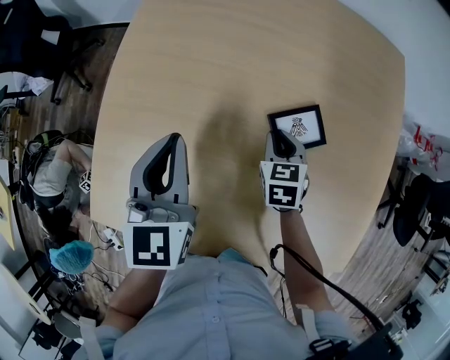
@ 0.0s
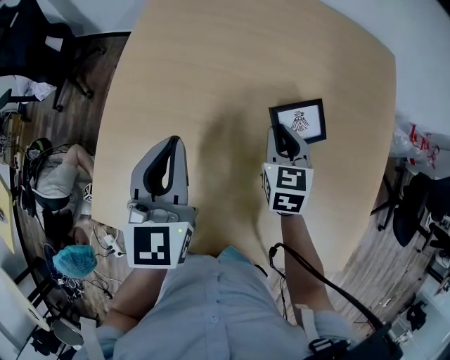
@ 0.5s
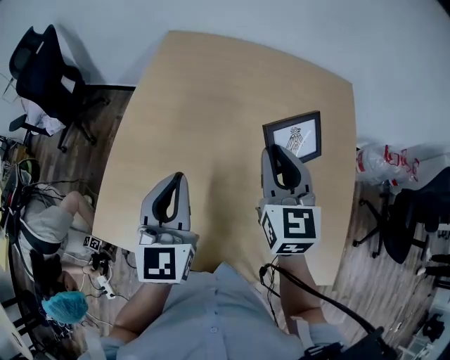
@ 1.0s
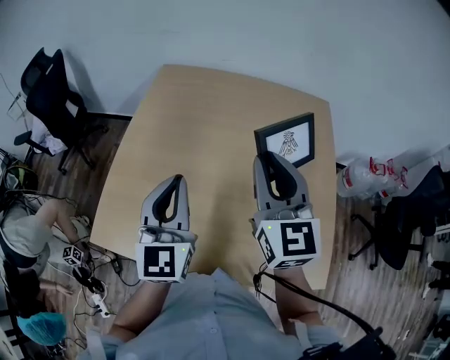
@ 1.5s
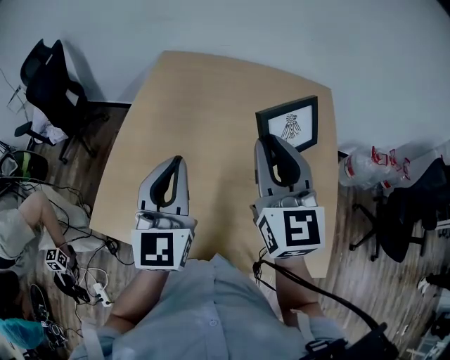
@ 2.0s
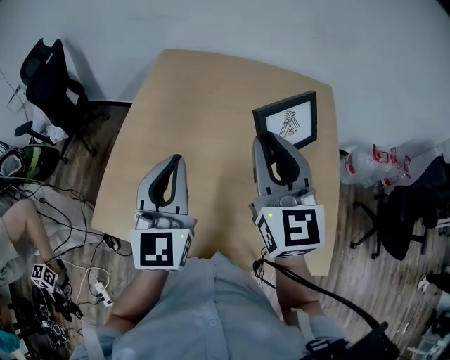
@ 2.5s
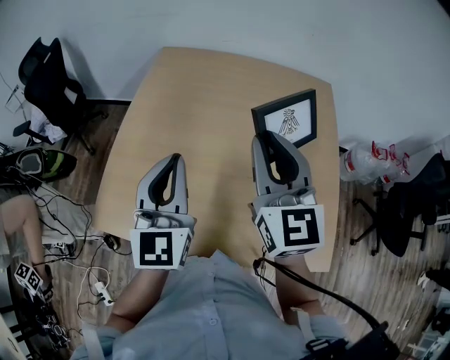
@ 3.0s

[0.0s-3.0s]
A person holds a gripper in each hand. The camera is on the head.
0.0s to 1.5s: The right gripper heads upward, covering about 35 cm, and points its fingers about 50 degrees further upward, while the left gripper goes roughly 15 cm upward, backward and to the right, and turns by some 20 degrees.
1.5s to 3.0s: The grippers move only a little.

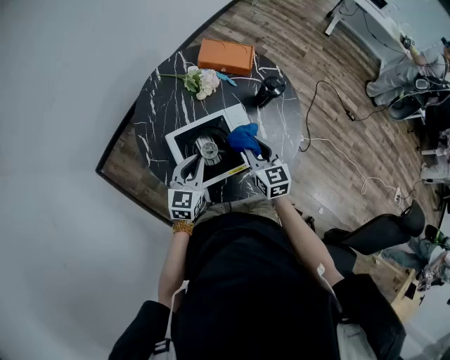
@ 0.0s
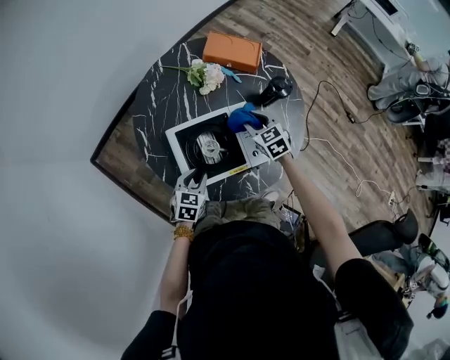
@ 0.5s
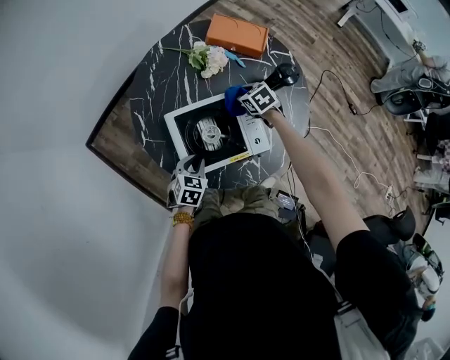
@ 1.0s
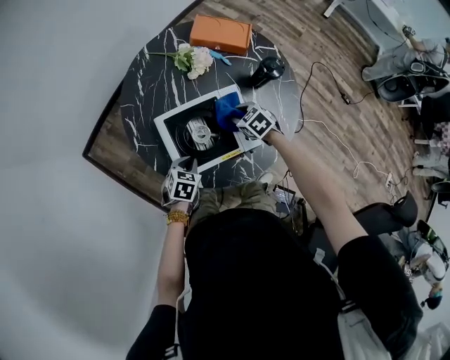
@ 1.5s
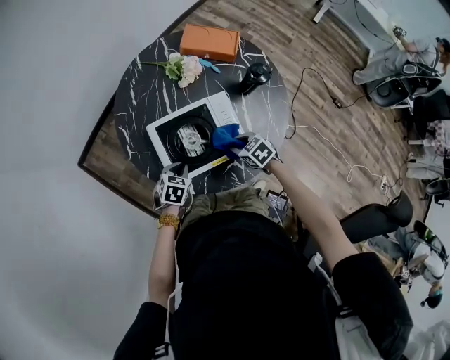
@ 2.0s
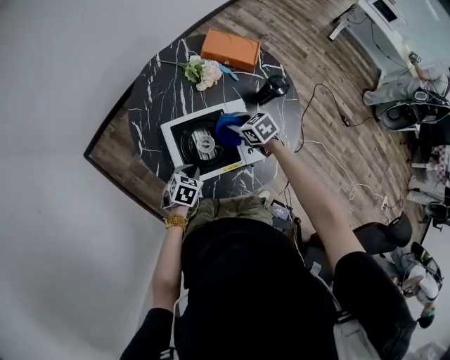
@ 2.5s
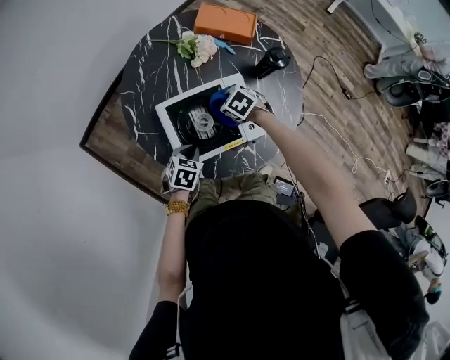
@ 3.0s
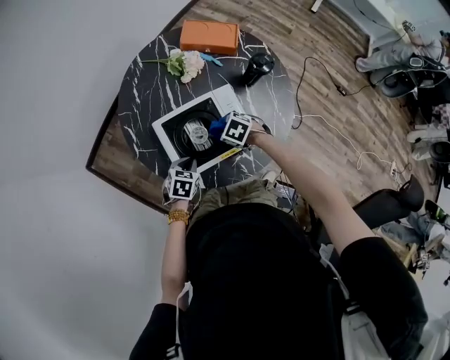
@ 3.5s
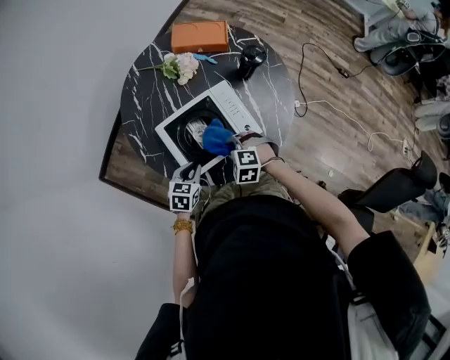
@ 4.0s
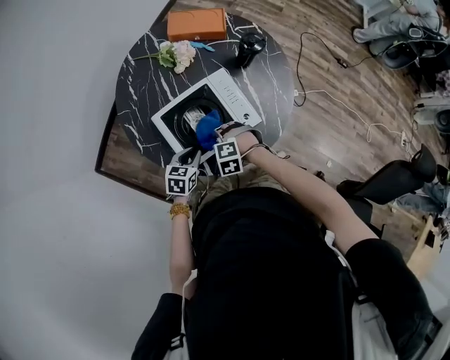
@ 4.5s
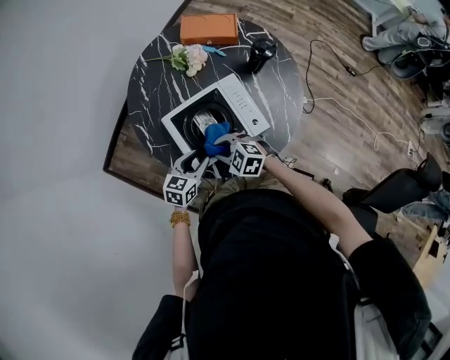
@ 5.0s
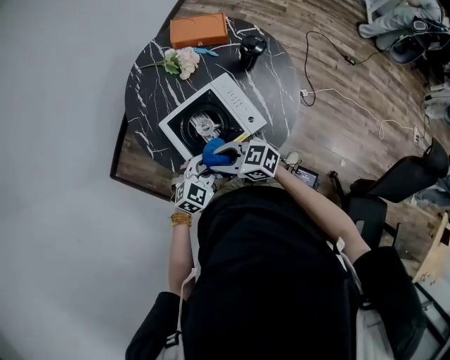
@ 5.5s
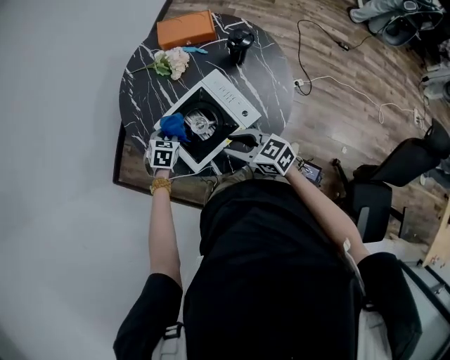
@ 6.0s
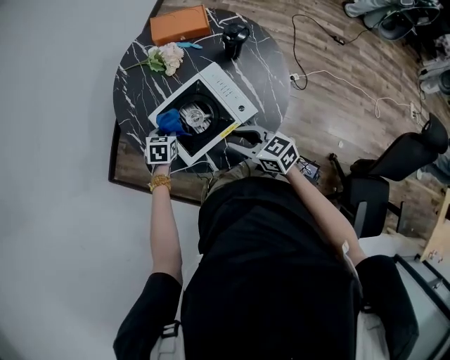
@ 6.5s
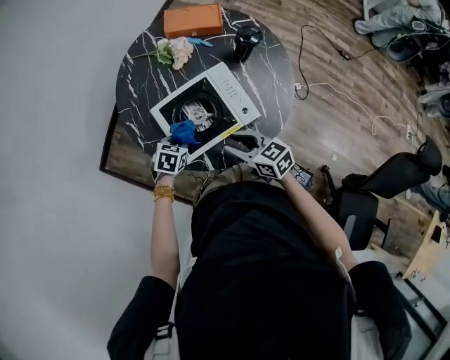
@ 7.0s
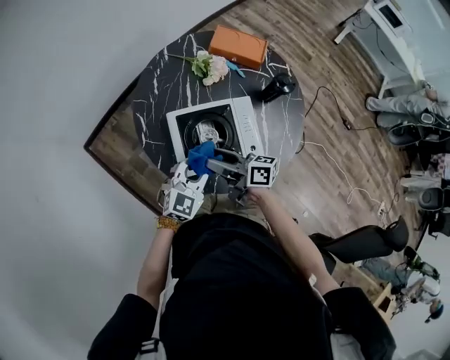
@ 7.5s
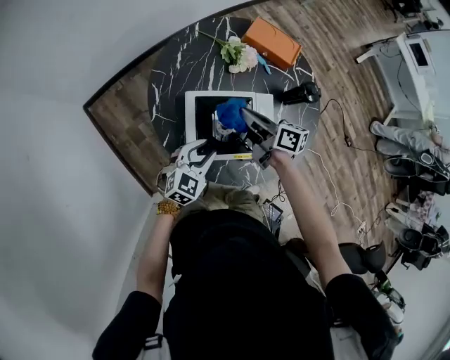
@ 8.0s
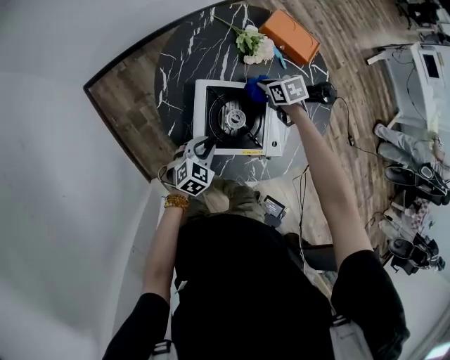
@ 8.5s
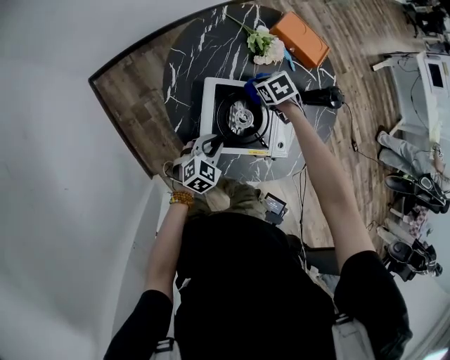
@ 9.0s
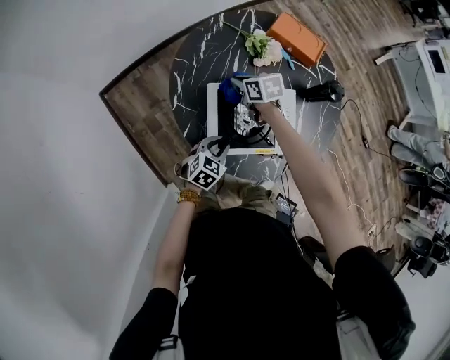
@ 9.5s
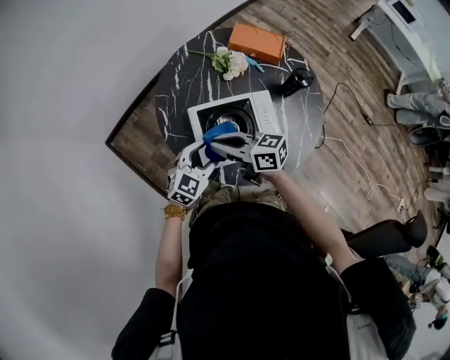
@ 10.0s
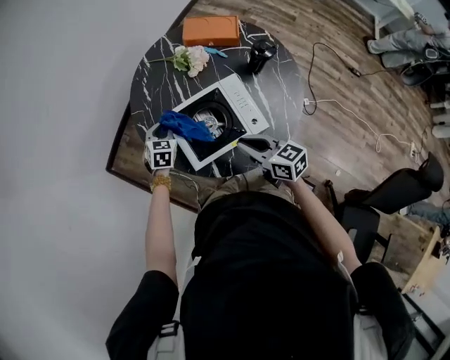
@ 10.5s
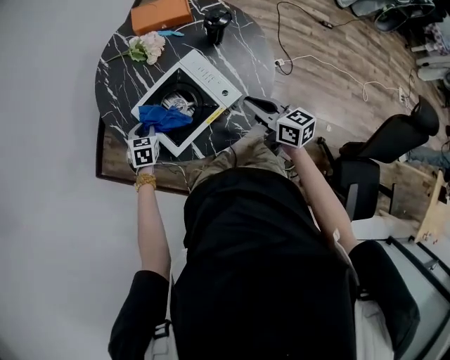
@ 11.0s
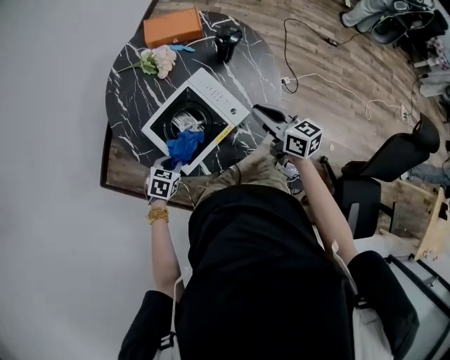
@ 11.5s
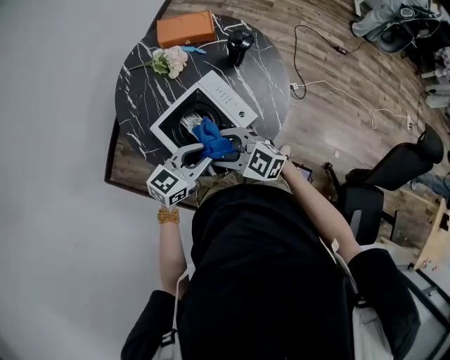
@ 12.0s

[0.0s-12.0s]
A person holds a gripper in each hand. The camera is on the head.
0.0s to 2.0s: The grippers both shift downward by about 15 cm. The left gripper angles its fingers downward, by about 40 degrees, and opens, then closes again. The right gripper travels forward and back again, some 15 cm each way, and points its fingers approximately 30 degrees further downward.
2.0s to 4.0s: The right gripper is displaced to the left by about 10 cm, moves some 10 cm forward and comes back, and rolls counterclockwise, seen from behind, by about 40 degrees.
4.0s to 6.0s: The right gripper travels upward by about 10 cm, and angles its fingers upward, by roughly 40 degrees. Meanwhile the left gripper goes upward and returns, approximately 5 cm each way, and changes its angle by some 20 degrees.
6.0s to 8.0s: The left gripper shifts about 15 cm backward and upward, and tips its fingers upward by approximately 30 degrees. The right gripper travels forward by roughly 15 cm, changes its angle by about 30 degrees, and closes.
8.0s to 10.0s: The right gripper is displaced to the left and backward by roughly 15 cm, goes downward and returns, approximately 15 cm each way, and turns by approximately 20 degrees, while the left gripper moves roughly 10 cm downward and comes back.
10.0s to 12.0s: The right gripper turns by roughly 50 degrees, and opens its fingers; the left gripper travels downward and back again, some 15 cm each way, changes its angle by approximately 40 degrees, and closes up.

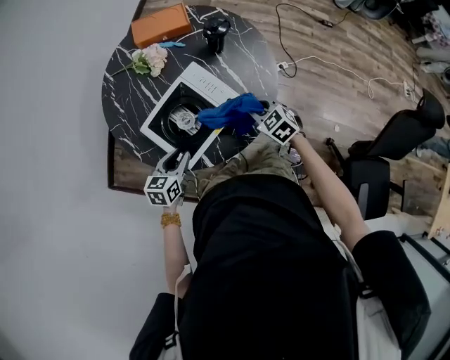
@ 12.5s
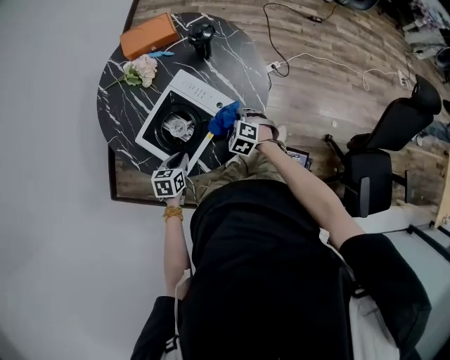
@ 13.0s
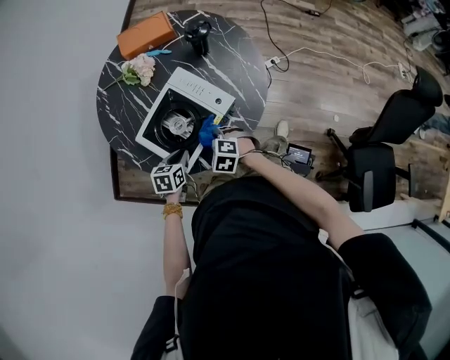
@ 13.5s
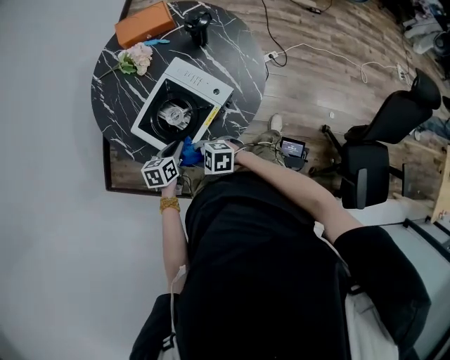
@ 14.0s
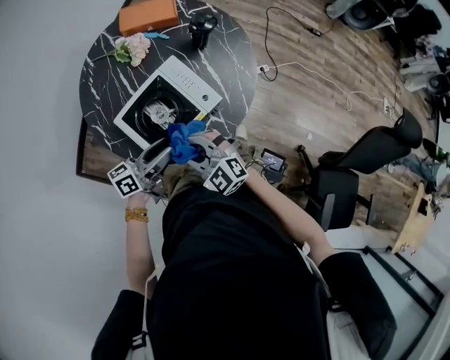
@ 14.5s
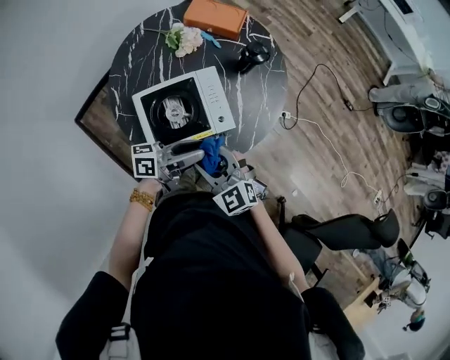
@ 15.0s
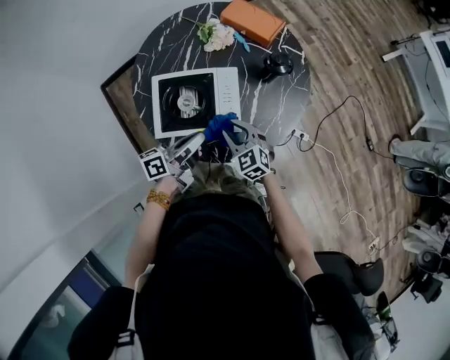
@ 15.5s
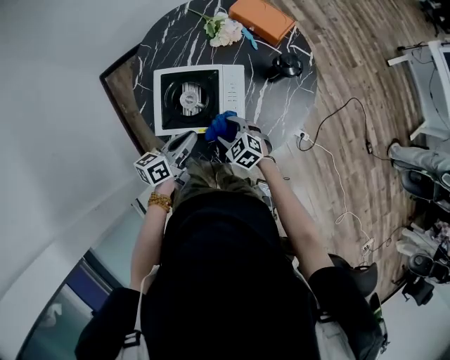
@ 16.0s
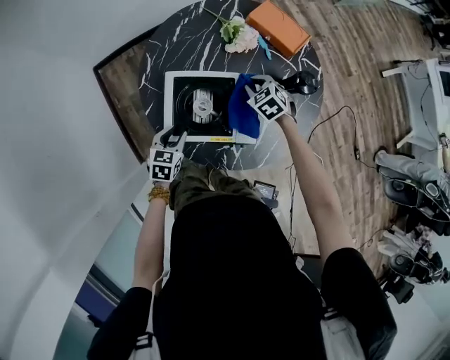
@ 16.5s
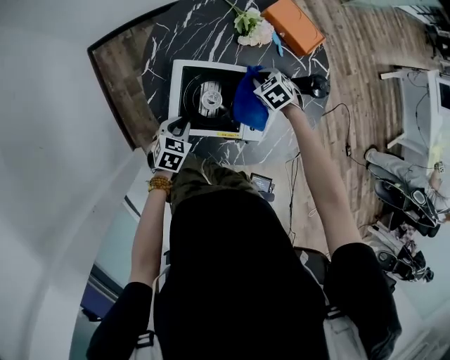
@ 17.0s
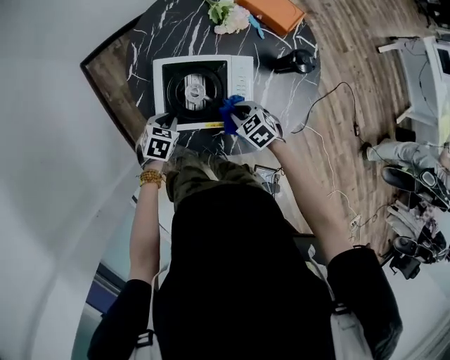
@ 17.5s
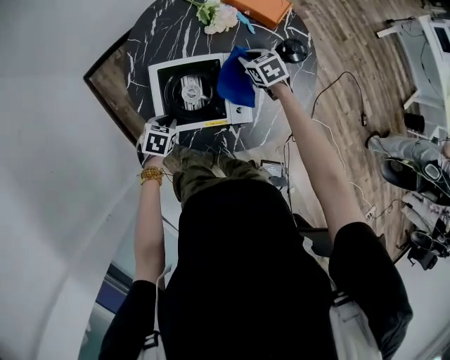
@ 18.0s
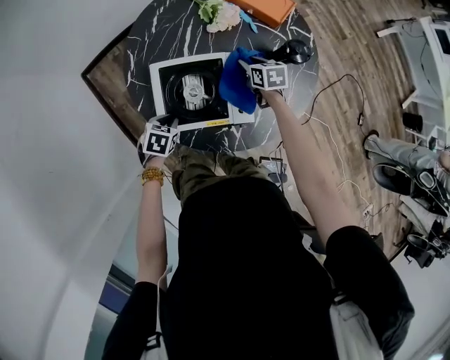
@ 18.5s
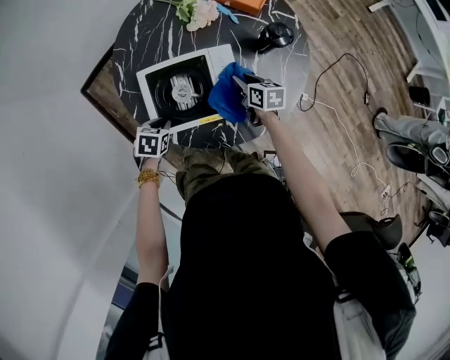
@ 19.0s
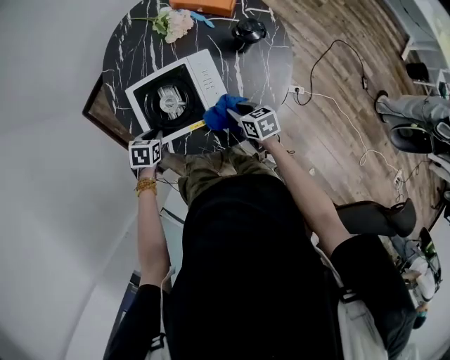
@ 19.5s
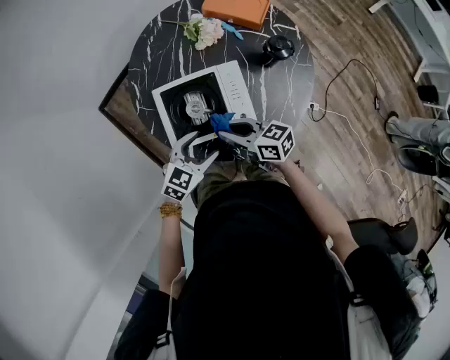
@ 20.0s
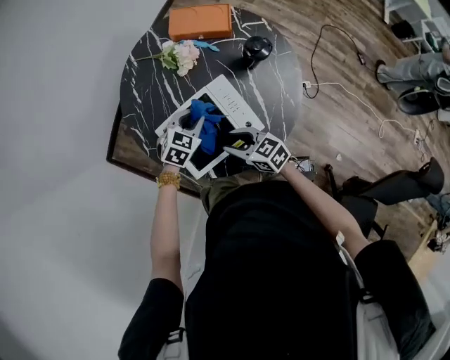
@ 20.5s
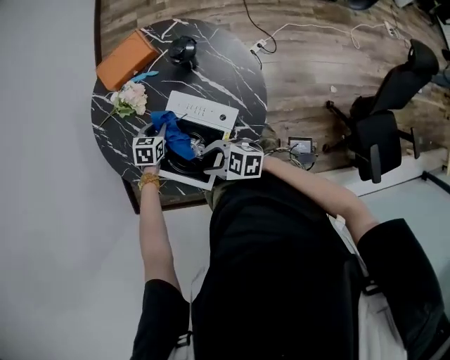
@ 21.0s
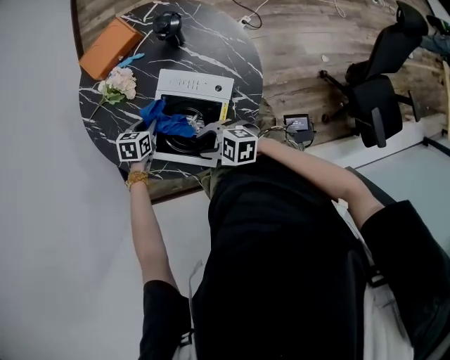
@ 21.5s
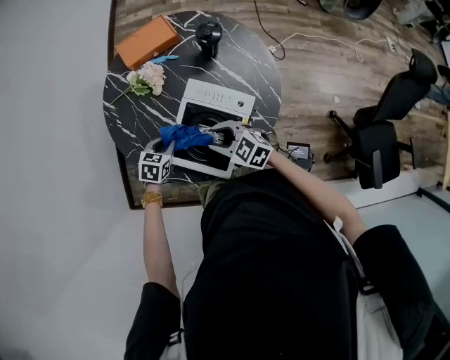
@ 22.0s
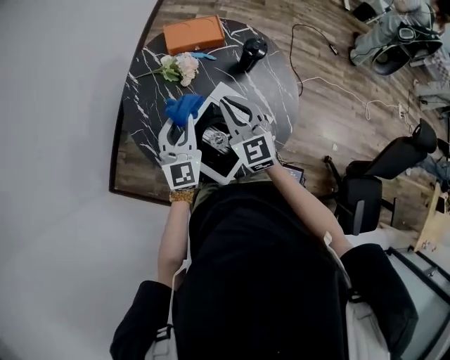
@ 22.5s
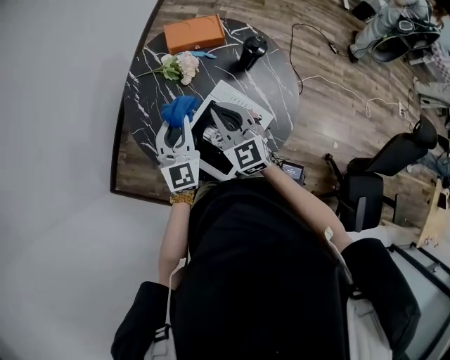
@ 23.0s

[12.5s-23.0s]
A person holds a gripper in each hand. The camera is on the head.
12.5s to 14.5s: The right gripper shifts by some 25 cm, and turns by some 40 degrees; the left gripper shifts some 10 cm upward, and angles its fingers upward, by approximately 40 degrees.
14.5s to 16.5s: The right gripper shifts by roughly 30 cm, angles its fingers downward, by some 40 degrees, and opens and closes again. The left gripper heads downward, covering about 15 cm, points its fingers roughly 40 degrees further downward, and closes, then reopens.
16.5s to 19.0s: The left gripper rotates approximately 30 degrees, and closes its fingers, while the right gripper swings forward and backward, some 15 cm each way, with 2 reversals, and twists approximately 60 degrees clockwise, seen from behind.
19.0s to 21.0s: The left gripper travels upward and back again, approximately 15 cm each way, rotates around the line of its fingers by approximately 50 degrees, clockwise from behind, and opens, then closes again. The right gripper shifts by some 25 cm, and turns by roughly 20 degrees.
21.0s to 23.0s: The right gripper changes place by some 15 cm, swivels roughly 50 degrees, and closes up; the left gripper goes about 25 cm upward, and tilts its fingers some 50 degrees upward.
